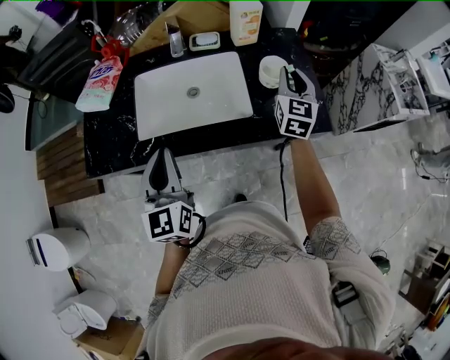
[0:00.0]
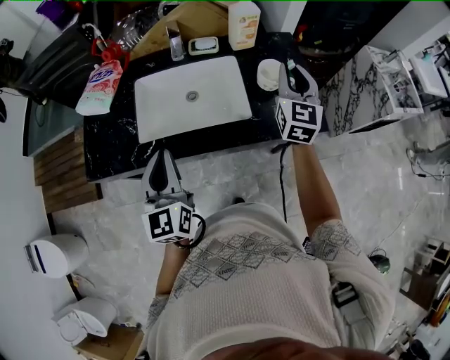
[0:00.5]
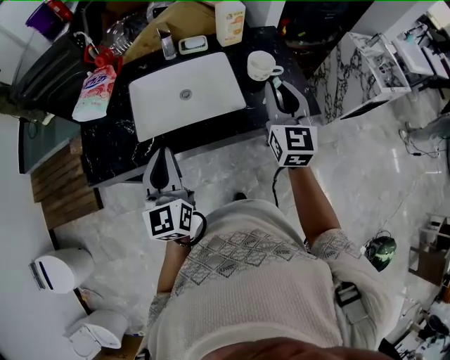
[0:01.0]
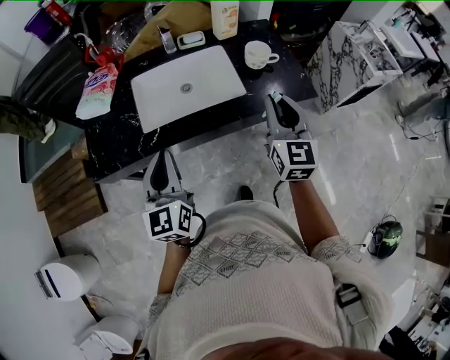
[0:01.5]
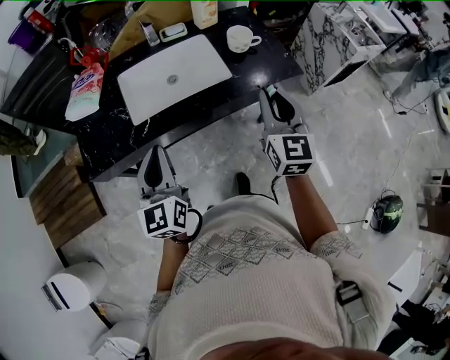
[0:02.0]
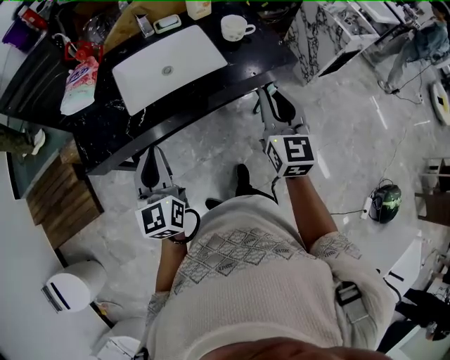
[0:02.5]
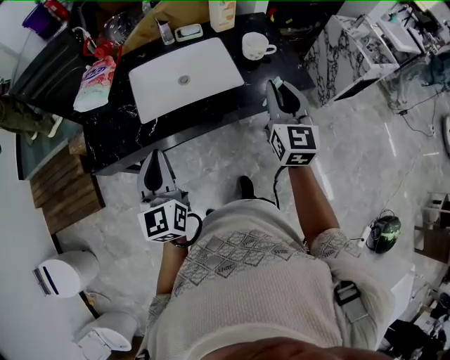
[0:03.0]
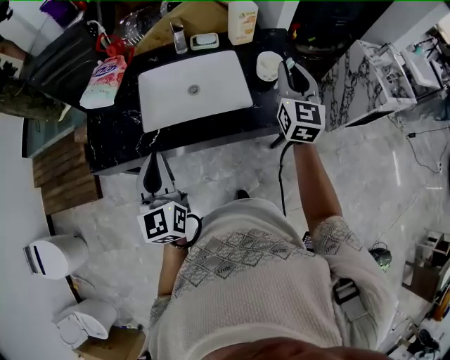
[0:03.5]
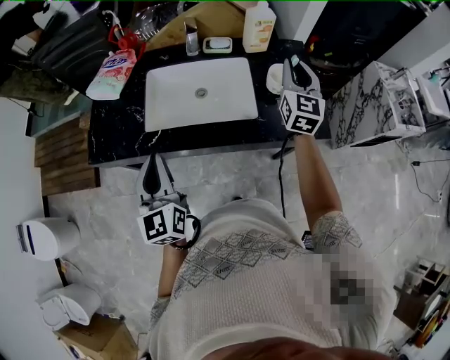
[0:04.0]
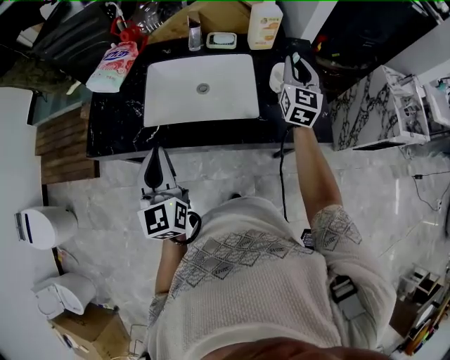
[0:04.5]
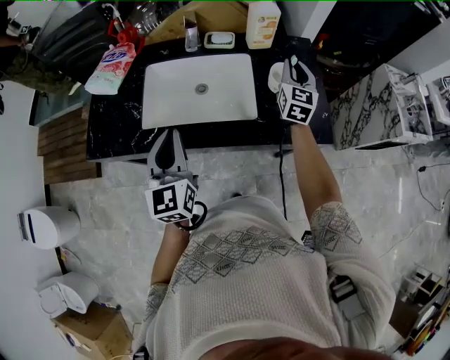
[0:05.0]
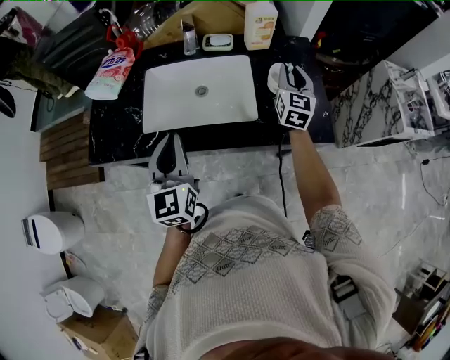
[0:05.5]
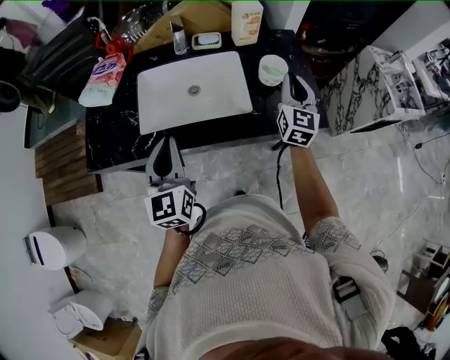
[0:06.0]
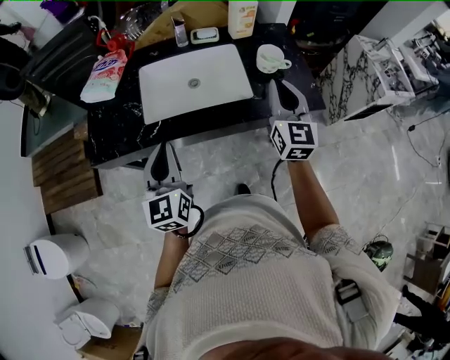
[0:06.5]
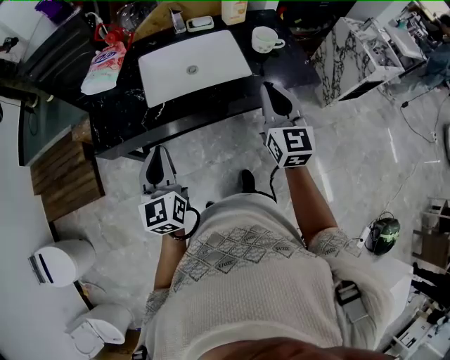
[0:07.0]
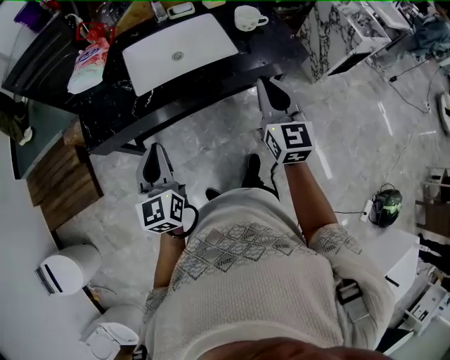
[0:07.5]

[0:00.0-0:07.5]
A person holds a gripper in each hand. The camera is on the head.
0:00.0 to 0:02.0: The right gripper goes about 30 cm backward. Meanwhile the left gripper moves backward and to the left, about 15 cm.
0:02.0 to 0:04.0: The right gripper heads forward, covering about 30 cm; the left gripper goes approximately 5 cm forward, and turns by about 20 degrees.
0:04.0 to 0:05.5: The right gripper shifts approximately 10 cm downward and forward, while the left gripper travels to the right and forward by about 10 cm.
0:05.5 to 0:07.5: The left gripper heads backward and to the left, covering approximately 25 cm; the right gripper moves backward, approximately 40 cm.

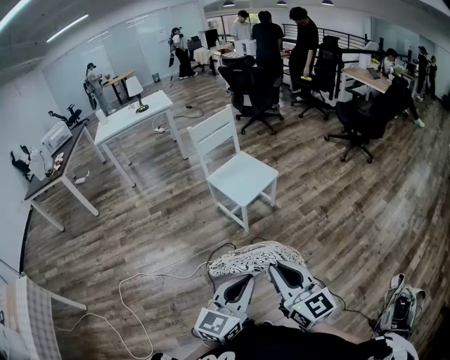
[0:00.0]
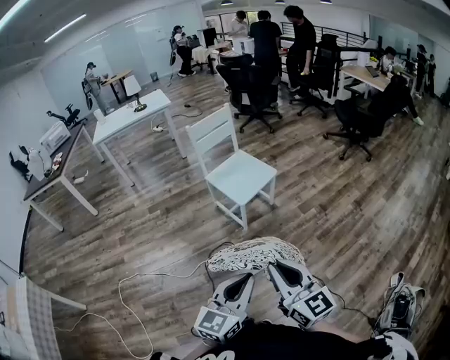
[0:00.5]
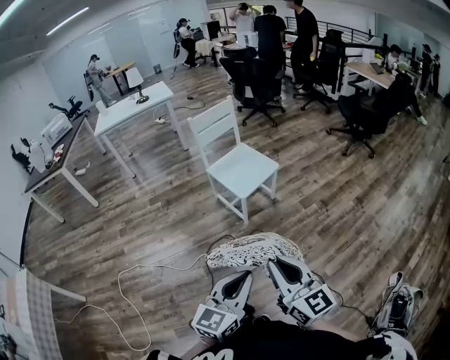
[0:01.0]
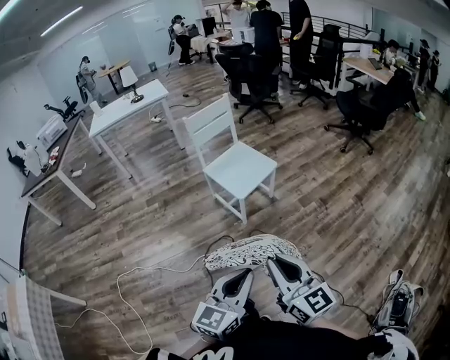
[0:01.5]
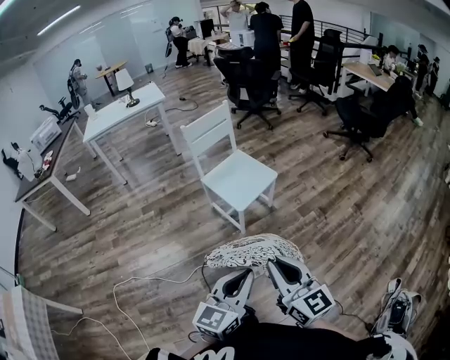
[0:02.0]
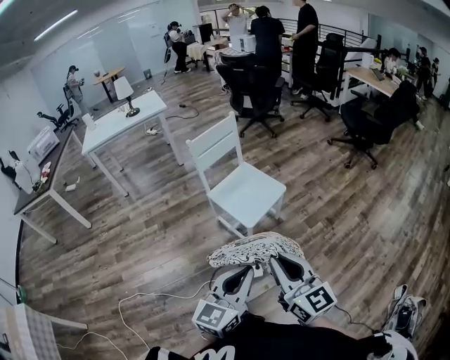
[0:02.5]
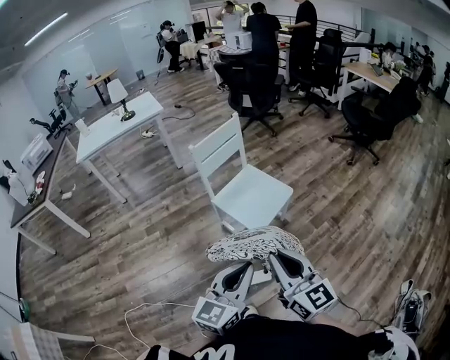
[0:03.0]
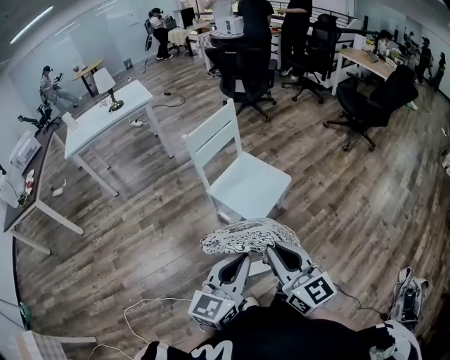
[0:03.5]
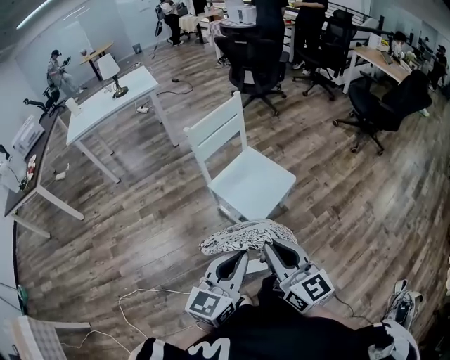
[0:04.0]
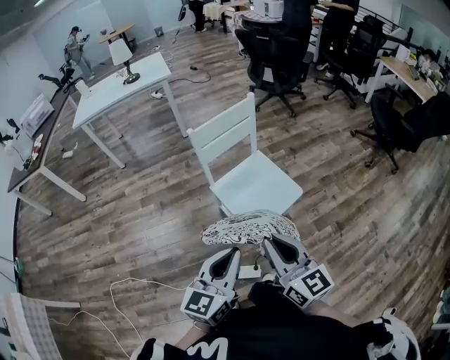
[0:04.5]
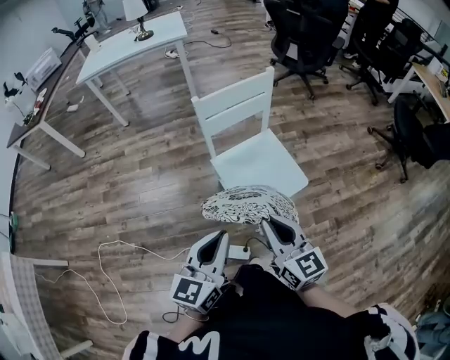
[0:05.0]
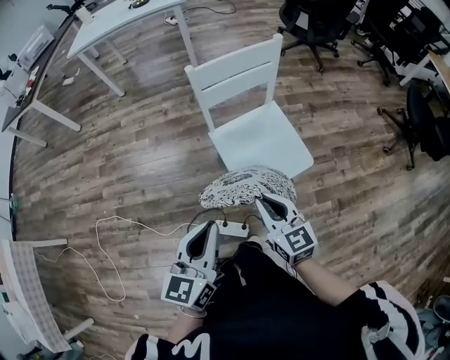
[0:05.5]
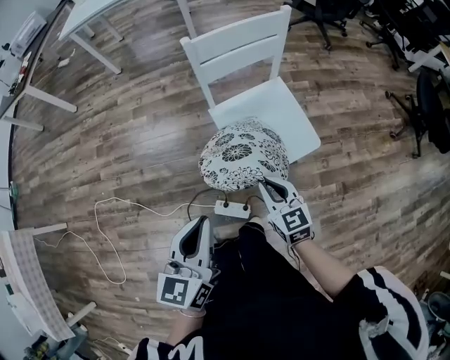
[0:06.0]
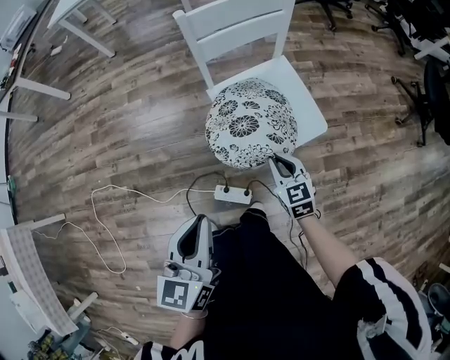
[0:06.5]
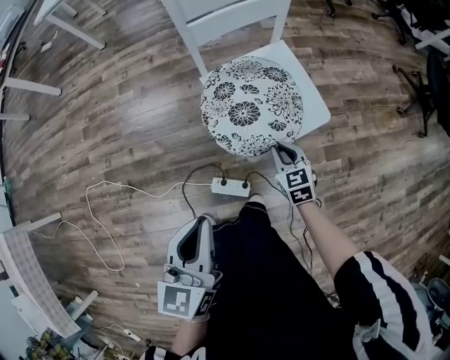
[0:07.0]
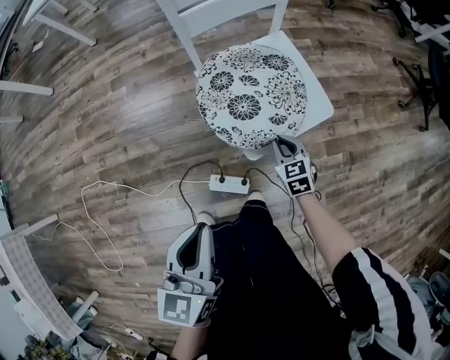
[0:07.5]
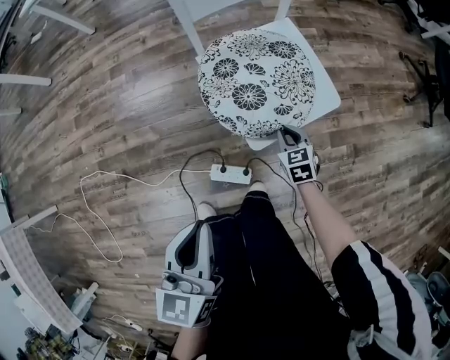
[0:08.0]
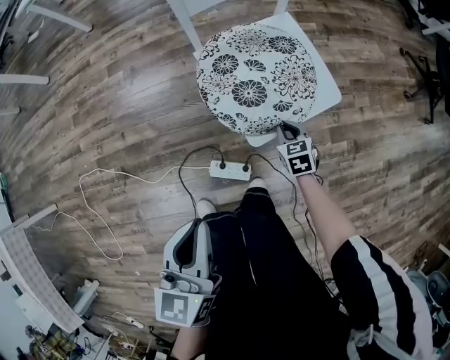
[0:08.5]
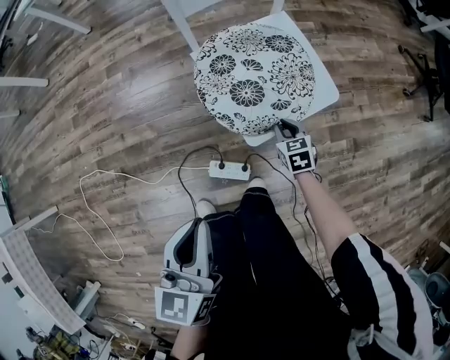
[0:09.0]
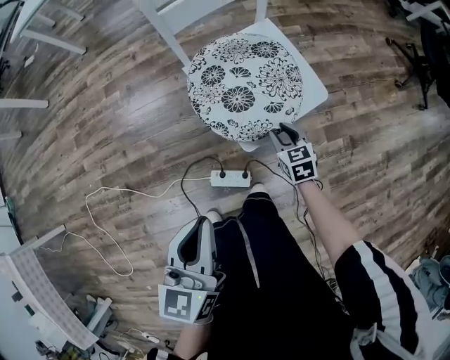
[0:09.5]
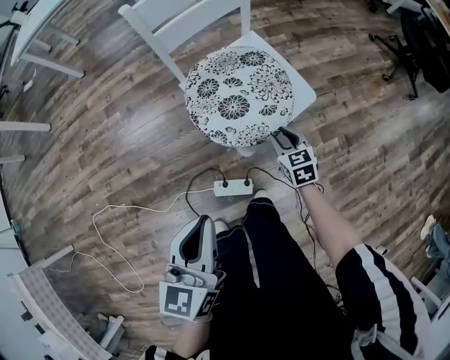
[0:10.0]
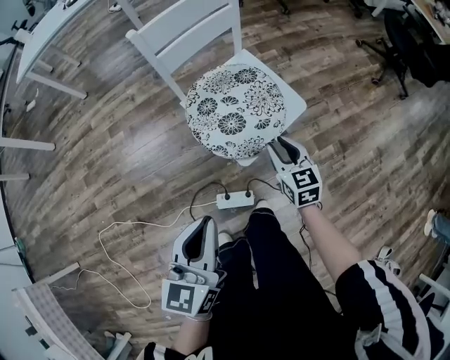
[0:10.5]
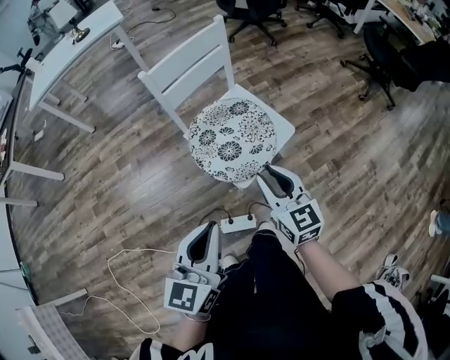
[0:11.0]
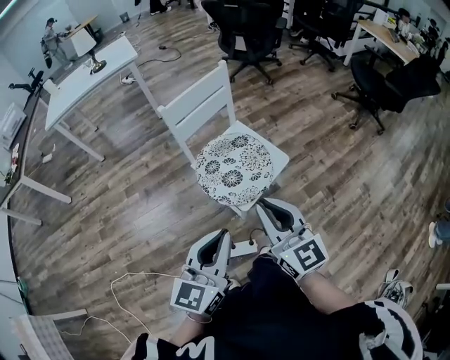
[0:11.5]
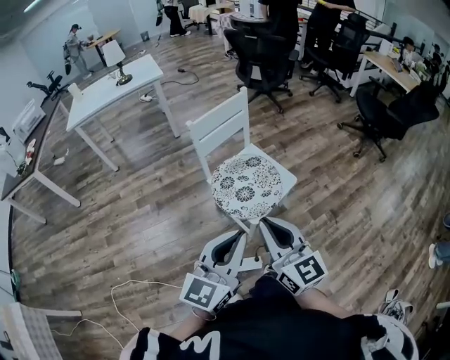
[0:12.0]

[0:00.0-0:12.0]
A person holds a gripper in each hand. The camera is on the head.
0:00.0 to 0:02.0: Both grippers travel together forward, roughly 10 cm.
0:02.0 to 0:04.0: The grippers both shift forward and to the left by about 25 cm.
0:04.0 to 0:06.0: The left gripper moves roughly 15 cm, and turns by roughly 40 degrees; the right gripper travels downward by roughly 25 cm, and turns by roughly 40 degrees.
0:06.0 to 0:08.0: The left gripper changes place by some 5 cm. The right gripper travels downward by some 25 cm, and changes its angle by roughly 20 degrees.
0:08.0 to 0:10.0: The right gripper travels upward by approximately 5 cm.
0:10.0 to 0:12.0: The left gripper goes approximately 20 cm upward, and rotates about 30 degrees. The right gripper travels upward and backward by about 50 cm, tips its fingers upward by approximately 50 degrees, and closes its fingers.

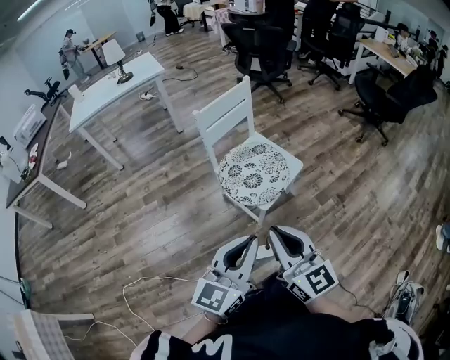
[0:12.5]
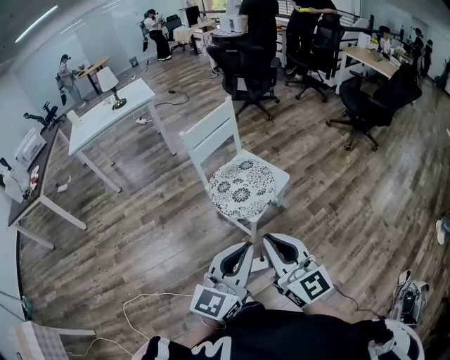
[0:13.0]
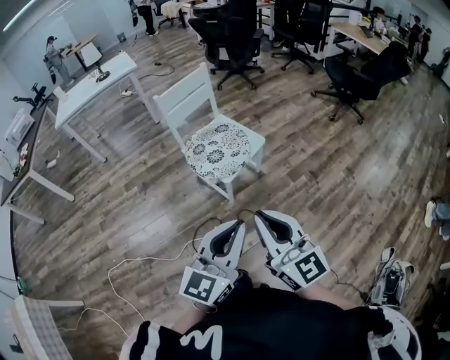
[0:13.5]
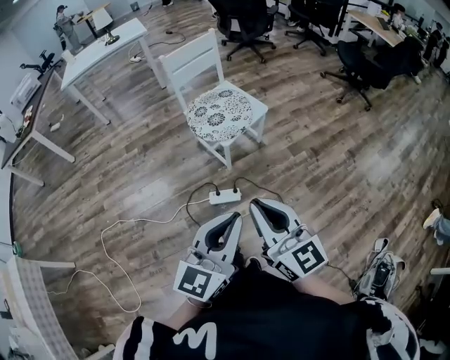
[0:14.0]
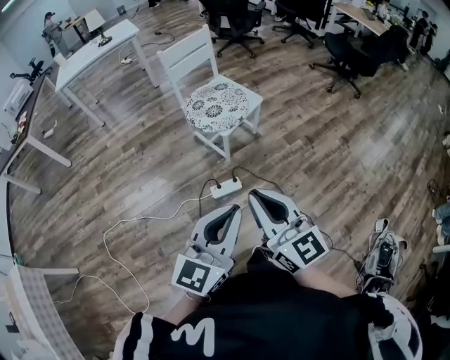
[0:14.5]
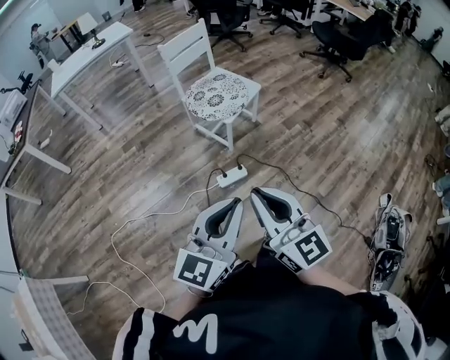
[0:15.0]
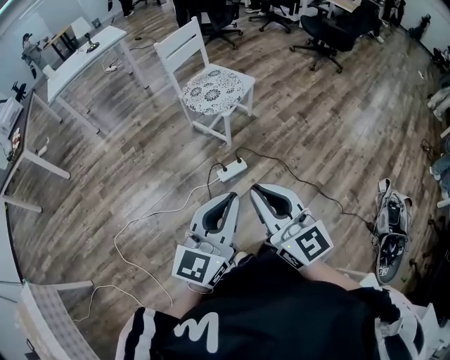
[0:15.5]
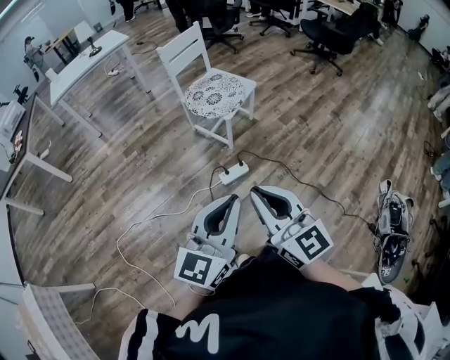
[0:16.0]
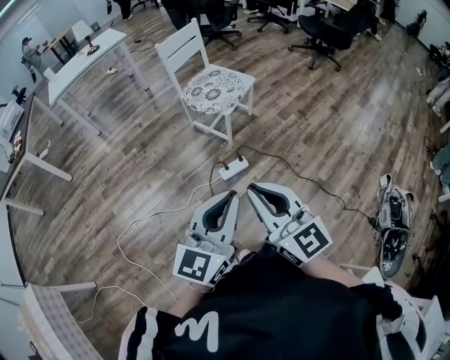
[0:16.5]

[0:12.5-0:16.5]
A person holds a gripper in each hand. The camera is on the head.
0:12.5 to 0:14.5: The left gripper moves backward and to the right, some 30 cm; the right gripper heads backward, covering approximately 25 cm.
0:14.5 to 0:16.5: Both grippers move backward and to the left, some 15 cm.

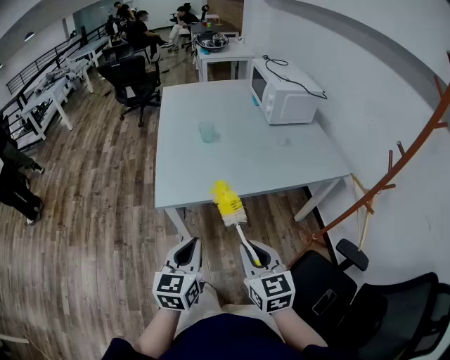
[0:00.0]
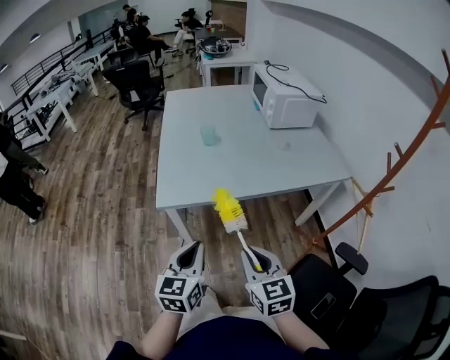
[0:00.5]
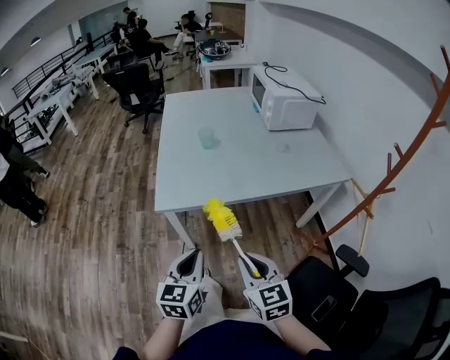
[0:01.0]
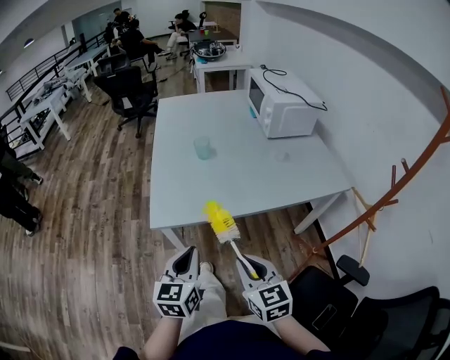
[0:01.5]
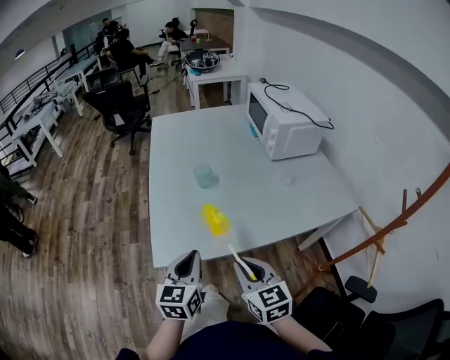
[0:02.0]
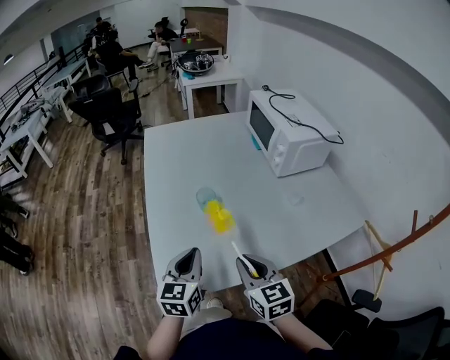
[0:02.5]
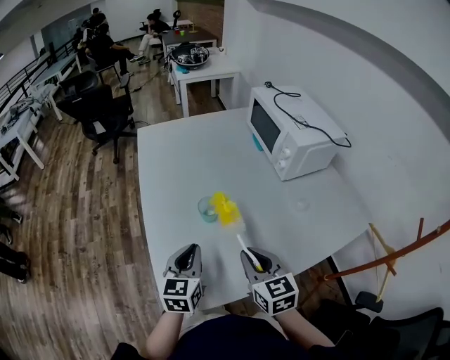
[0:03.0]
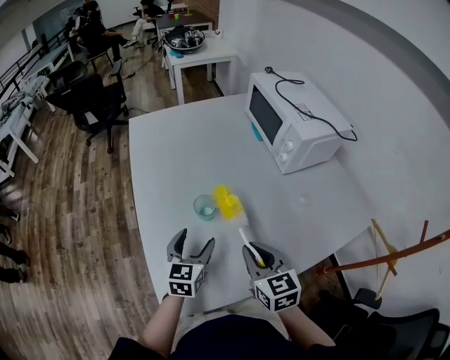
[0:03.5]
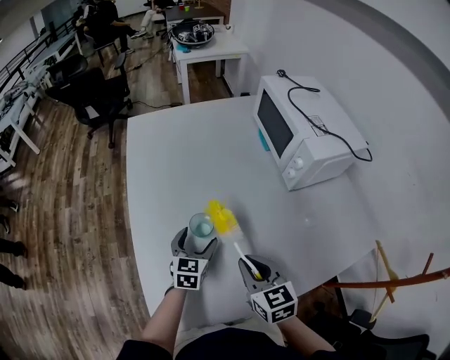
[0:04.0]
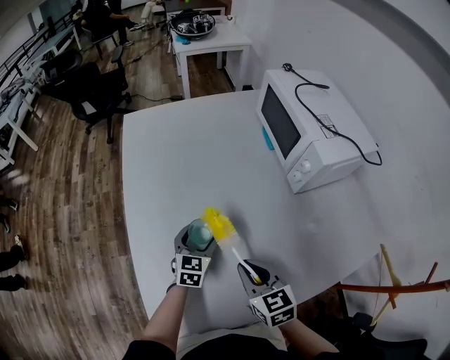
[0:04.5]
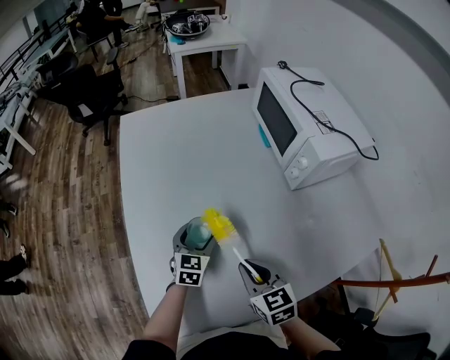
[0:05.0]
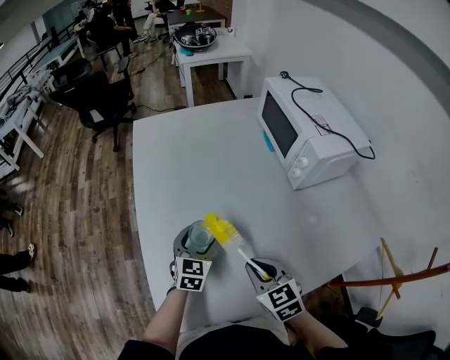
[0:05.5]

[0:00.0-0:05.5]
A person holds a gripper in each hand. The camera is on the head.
0:00.0 to 0:02.0: The two grippers go approximately 20 cm forward.
0:02.0 to 0:03.5: The two grippers go roughly 25 cm forward. The left gripper opens its fingers.
0:03.5 to 0:05.5: The left gripper moves forward and downward, approximately 10 cm.
